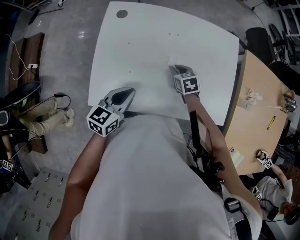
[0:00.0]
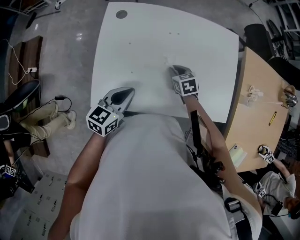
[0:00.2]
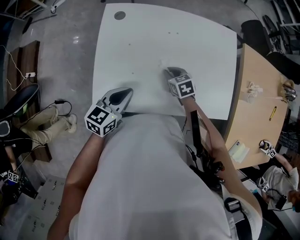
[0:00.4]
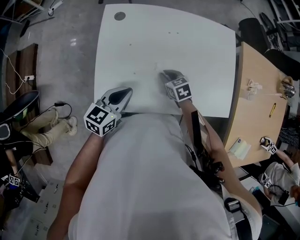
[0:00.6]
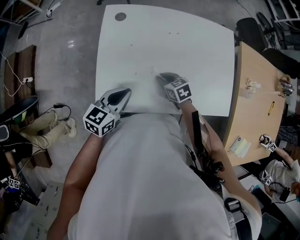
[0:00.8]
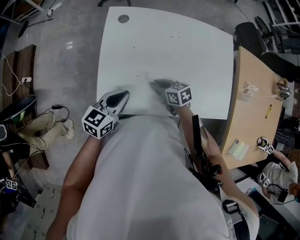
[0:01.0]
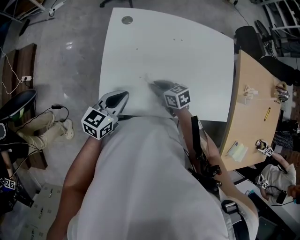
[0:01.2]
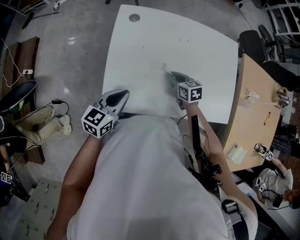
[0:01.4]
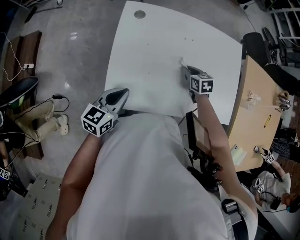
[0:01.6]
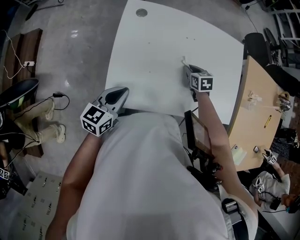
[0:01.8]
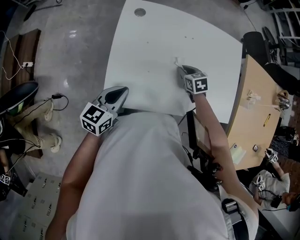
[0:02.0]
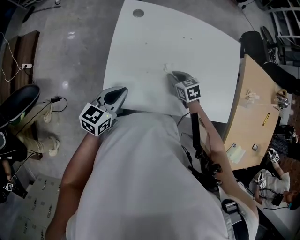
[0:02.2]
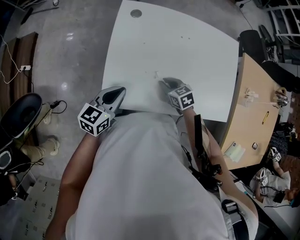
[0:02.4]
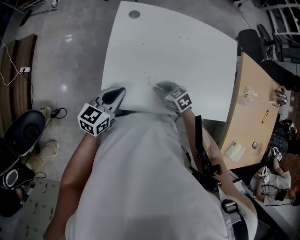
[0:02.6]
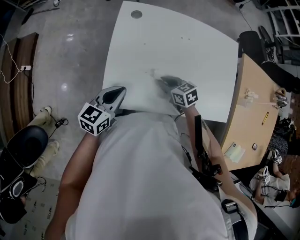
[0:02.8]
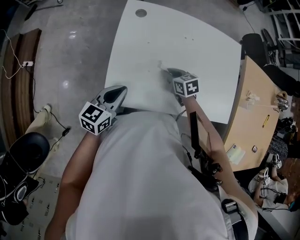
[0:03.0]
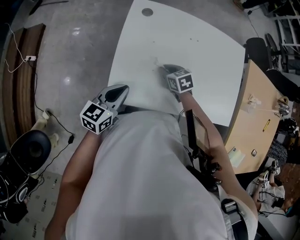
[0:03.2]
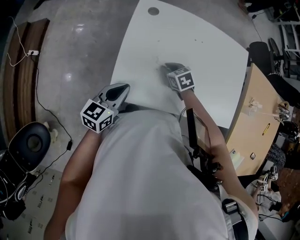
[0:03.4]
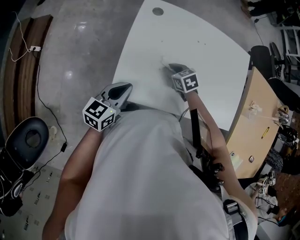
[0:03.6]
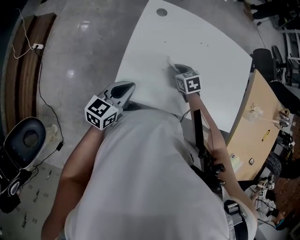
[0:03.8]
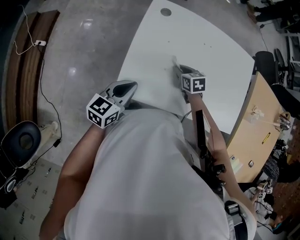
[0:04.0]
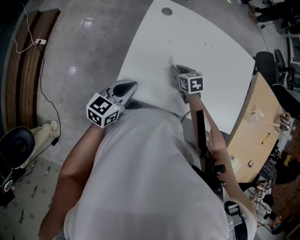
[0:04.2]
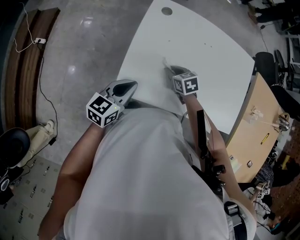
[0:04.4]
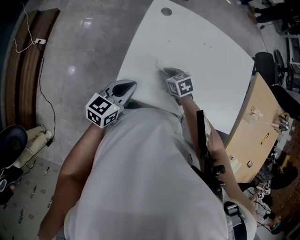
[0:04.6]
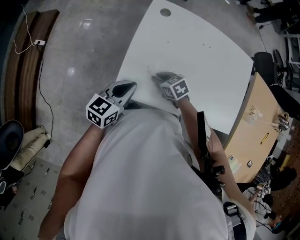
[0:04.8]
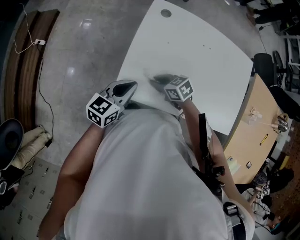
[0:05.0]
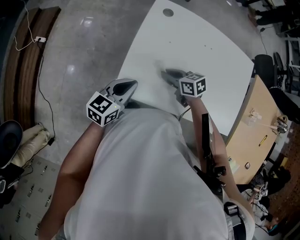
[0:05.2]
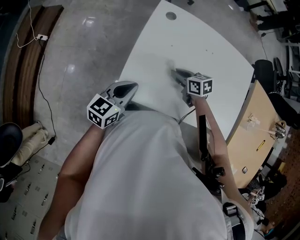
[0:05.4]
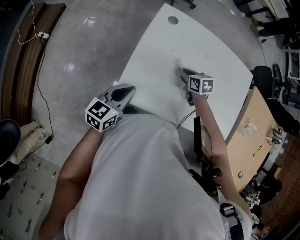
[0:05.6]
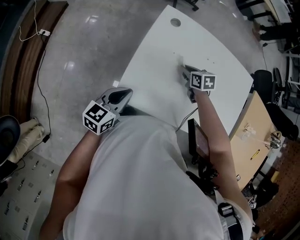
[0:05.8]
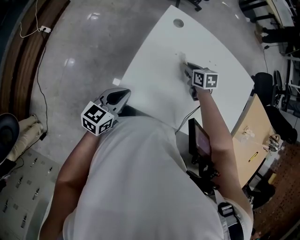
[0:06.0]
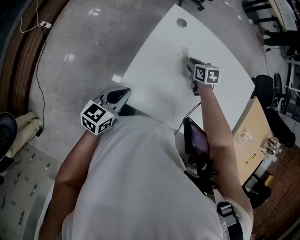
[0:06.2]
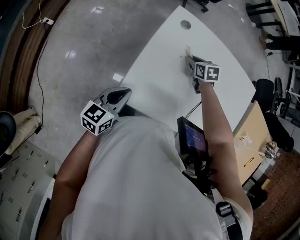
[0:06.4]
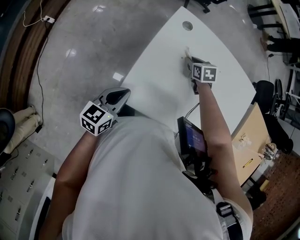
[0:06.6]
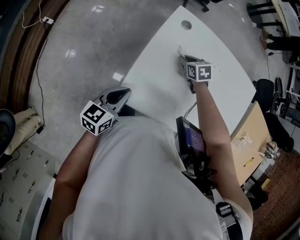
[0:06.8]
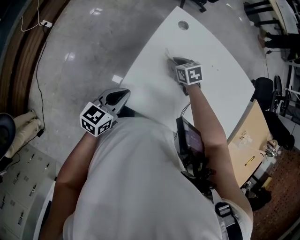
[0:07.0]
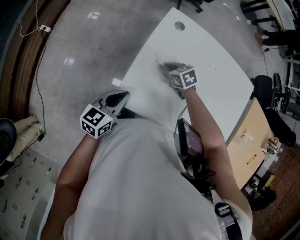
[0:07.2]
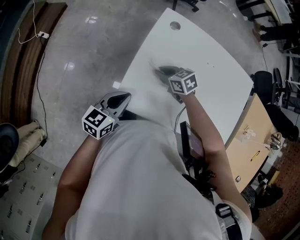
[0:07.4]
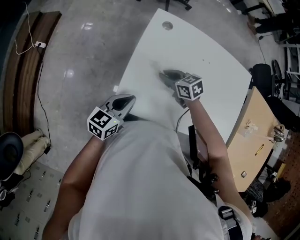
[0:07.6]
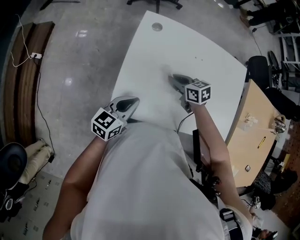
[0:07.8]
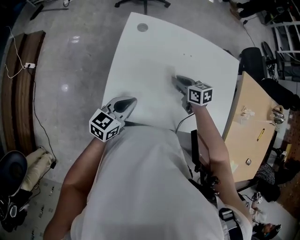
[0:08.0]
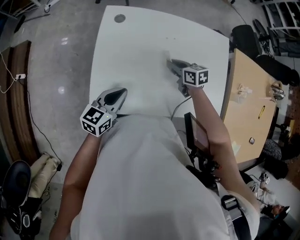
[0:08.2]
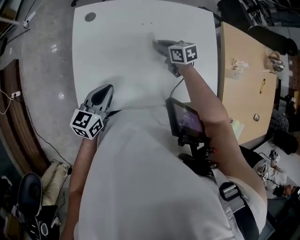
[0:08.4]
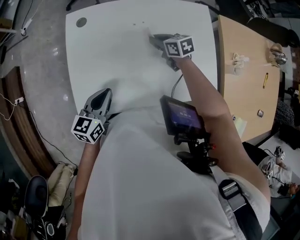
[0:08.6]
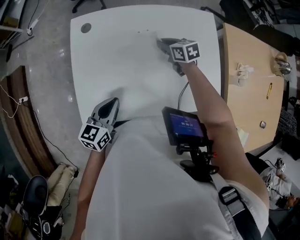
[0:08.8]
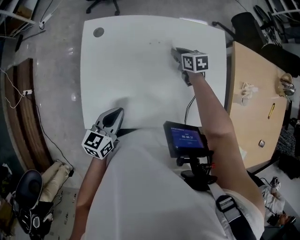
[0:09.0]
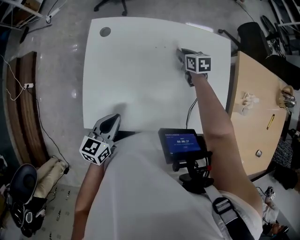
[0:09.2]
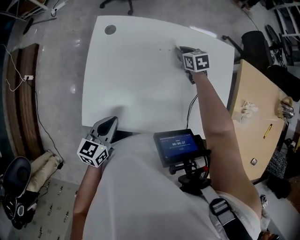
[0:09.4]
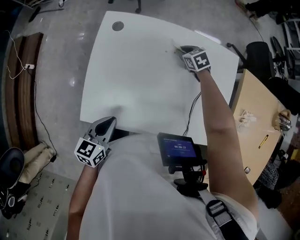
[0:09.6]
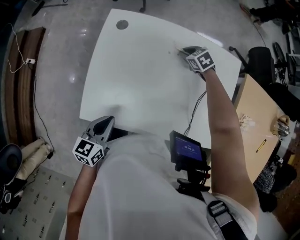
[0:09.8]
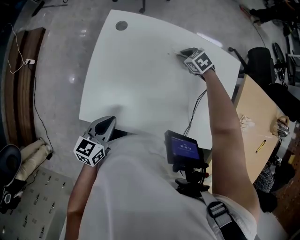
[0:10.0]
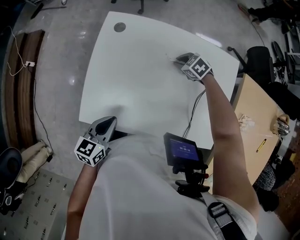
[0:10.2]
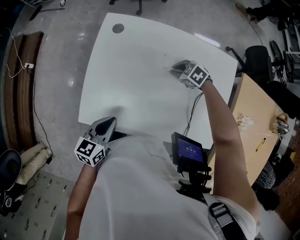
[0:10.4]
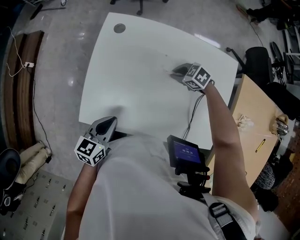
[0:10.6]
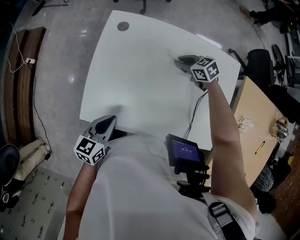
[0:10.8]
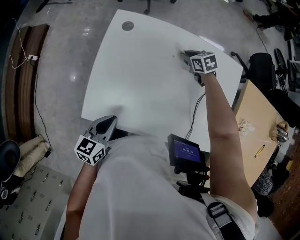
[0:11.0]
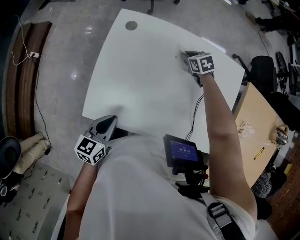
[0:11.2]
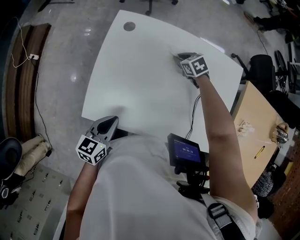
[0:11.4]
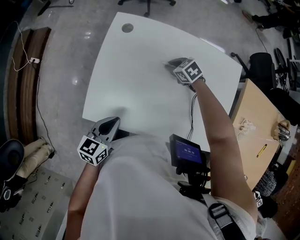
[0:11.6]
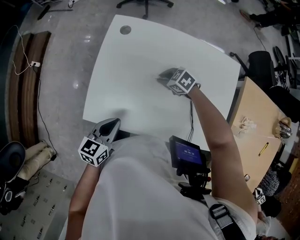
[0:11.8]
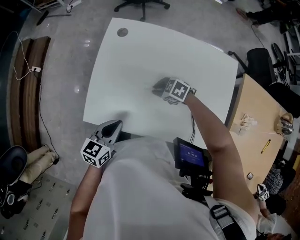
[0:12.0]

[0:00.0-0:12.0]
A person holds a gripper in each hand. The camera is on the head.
0:00.0 to 0:01.6: The right gripper moves some 15 cm to the left and comes back. Meanwhile the left gripper moves to the left, about 10 cm.
0:01.6 to 0:03.0: The right gripper travels to the left by approximately 10 cm.
0:03.0 to 0:04.4: The right gripper is displaced to the left by about 5 cm.
0:04.4 to 0:06.0: The right gripper is displaced forward by approximately 10 cm.
0:06.0 to 0:07.6: The right gripper goes approximately 10 cm to the left and backward, and changes its angle by some 20 degrees.
0:07.6 to 0:09.0: The left gripper is displaced to the right by some 15 cm. Meanwhile the right gripper moves to the right, some 30 cm, and rotates about 40 degrees.
0:09.0 to 0:10.4: The right gripper shifts by roughly 10 cm, and twists approximately 50 degrees counterclockwise, seen from behind.
0:10.4 to 0:12.0: The right gripper shifts by approximately 15 cm.

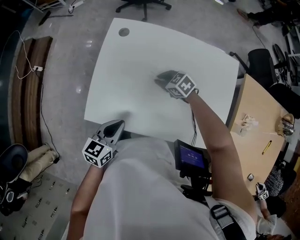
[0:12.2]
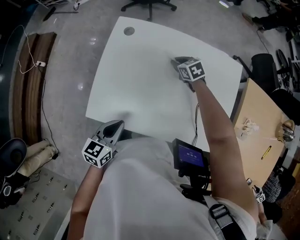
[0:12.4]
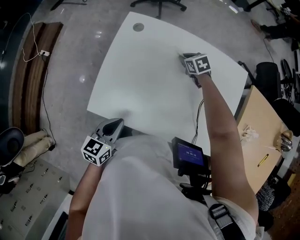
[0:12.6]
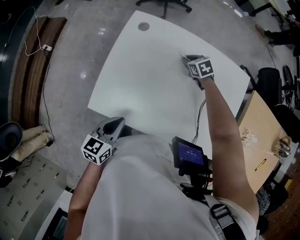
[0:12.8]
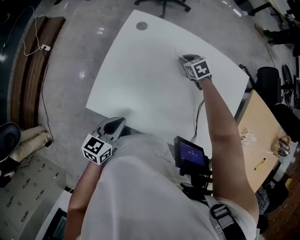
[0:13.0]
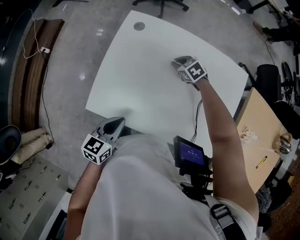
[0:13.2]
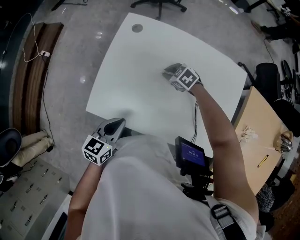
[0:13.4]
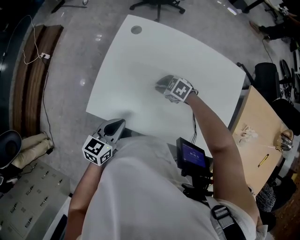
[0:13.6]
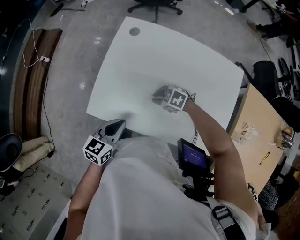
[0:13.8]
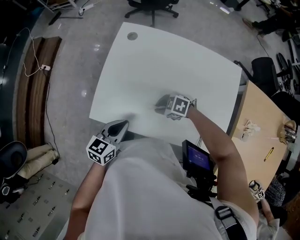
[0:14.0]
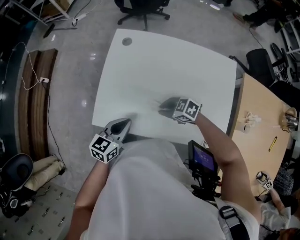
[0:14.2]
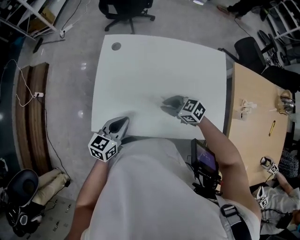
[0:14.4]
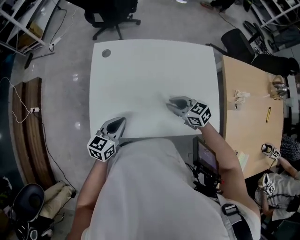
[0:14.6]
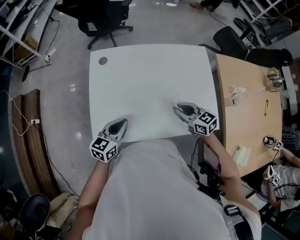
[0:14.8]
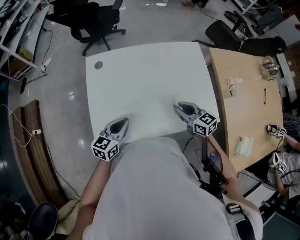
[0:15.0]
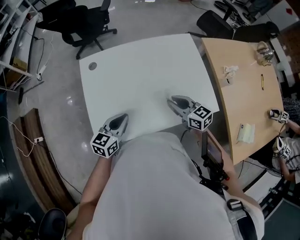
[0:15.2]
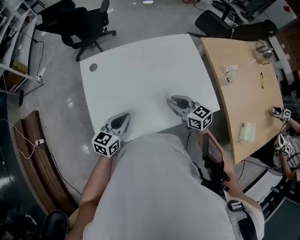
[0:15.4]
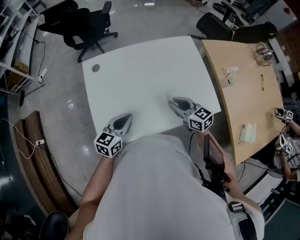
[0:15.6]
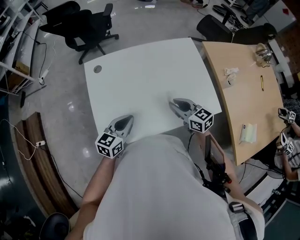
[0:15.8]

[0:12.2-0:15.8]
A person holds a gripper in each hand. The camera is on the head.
0:12.2 to 0:14.0: The right gripper shifts by about 15 cm, and turns by about 30 degrees.
0:14.0 to 0:15.8: The left gripper shifts by approximately 5 cm, and rotates roughly 30 degrees; the right gripper heads upward, covering roughly 15 cm, and rotates about 80 degrees.

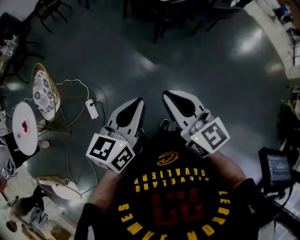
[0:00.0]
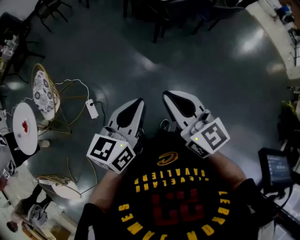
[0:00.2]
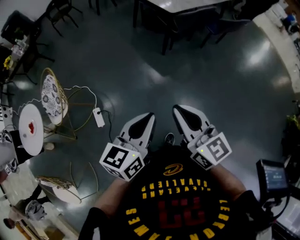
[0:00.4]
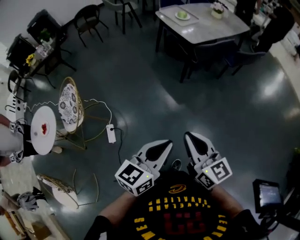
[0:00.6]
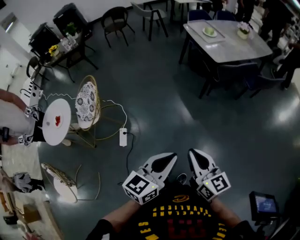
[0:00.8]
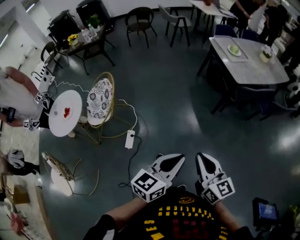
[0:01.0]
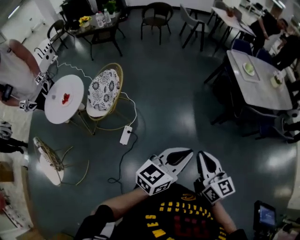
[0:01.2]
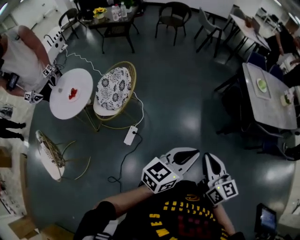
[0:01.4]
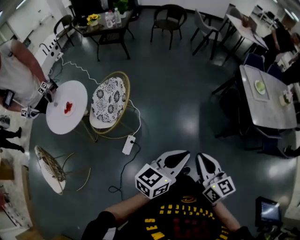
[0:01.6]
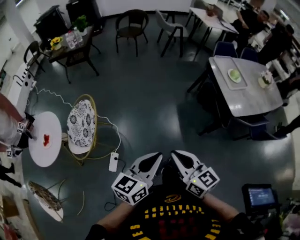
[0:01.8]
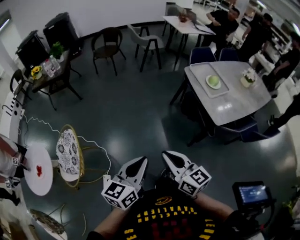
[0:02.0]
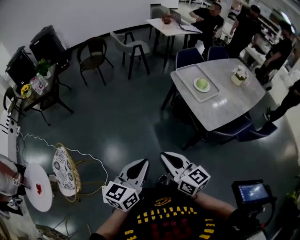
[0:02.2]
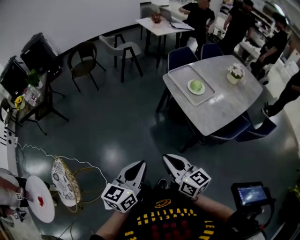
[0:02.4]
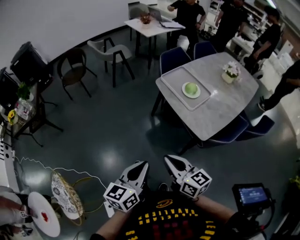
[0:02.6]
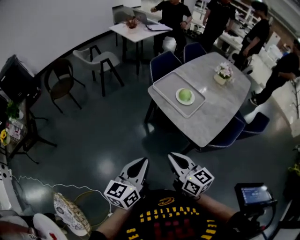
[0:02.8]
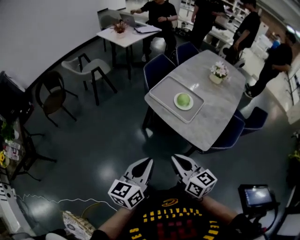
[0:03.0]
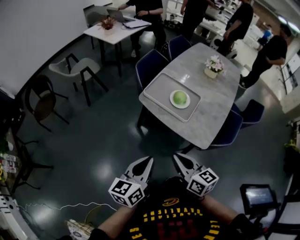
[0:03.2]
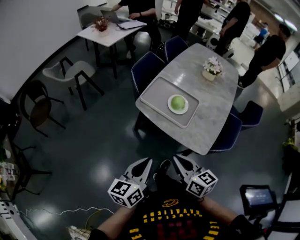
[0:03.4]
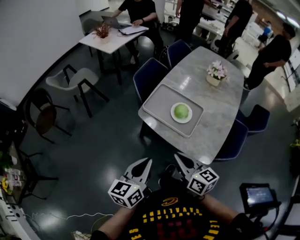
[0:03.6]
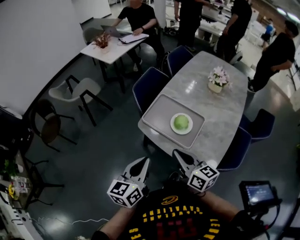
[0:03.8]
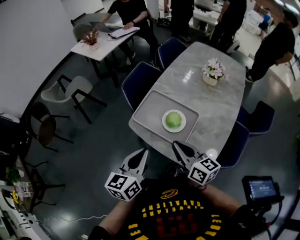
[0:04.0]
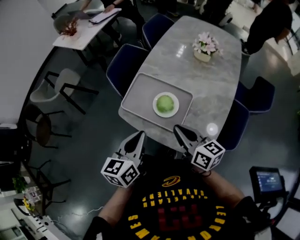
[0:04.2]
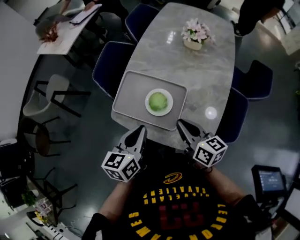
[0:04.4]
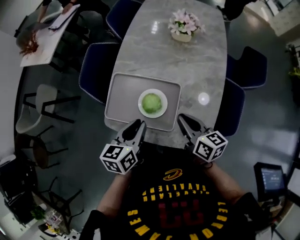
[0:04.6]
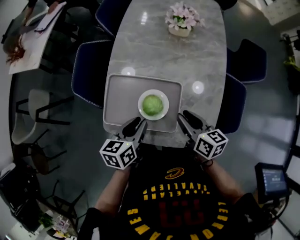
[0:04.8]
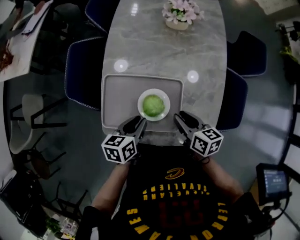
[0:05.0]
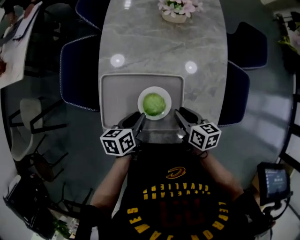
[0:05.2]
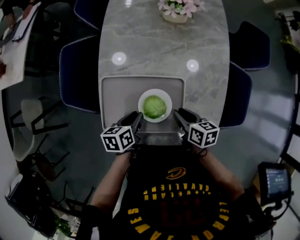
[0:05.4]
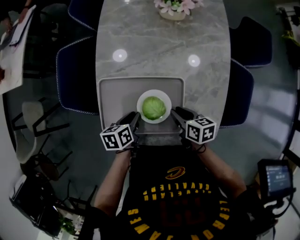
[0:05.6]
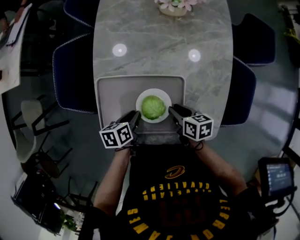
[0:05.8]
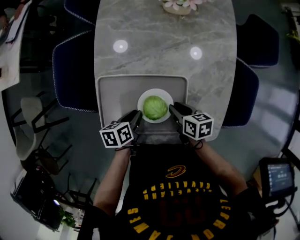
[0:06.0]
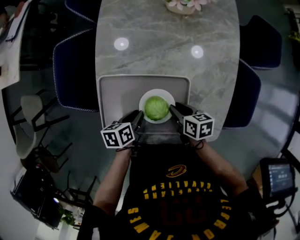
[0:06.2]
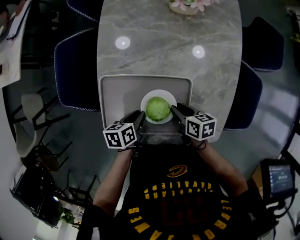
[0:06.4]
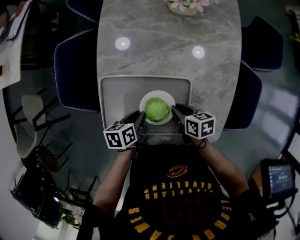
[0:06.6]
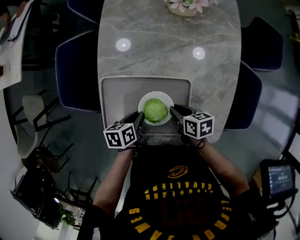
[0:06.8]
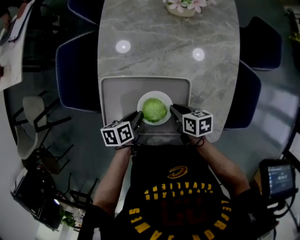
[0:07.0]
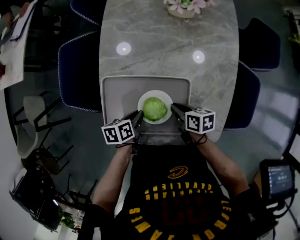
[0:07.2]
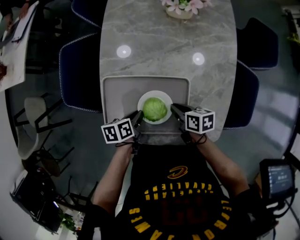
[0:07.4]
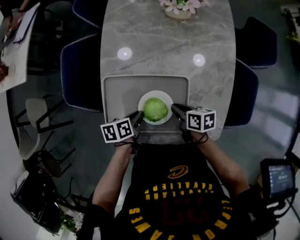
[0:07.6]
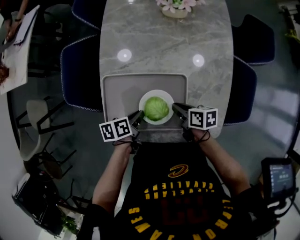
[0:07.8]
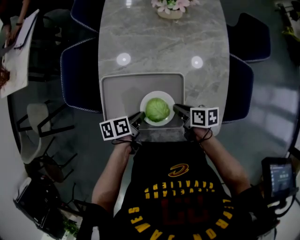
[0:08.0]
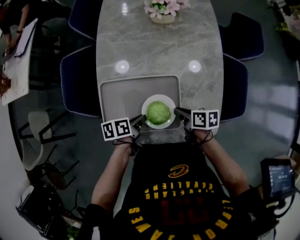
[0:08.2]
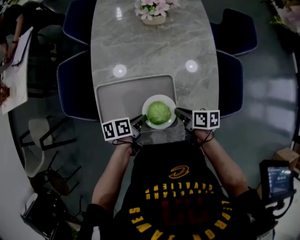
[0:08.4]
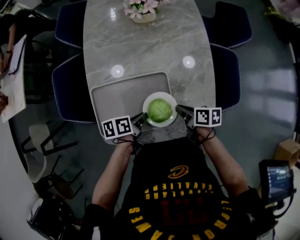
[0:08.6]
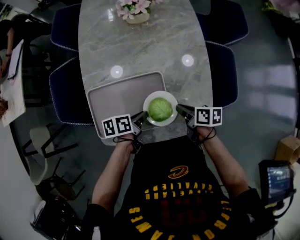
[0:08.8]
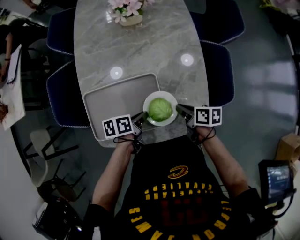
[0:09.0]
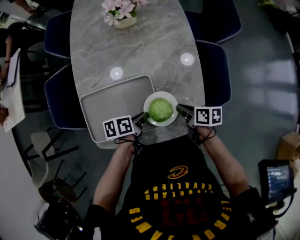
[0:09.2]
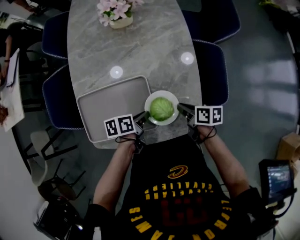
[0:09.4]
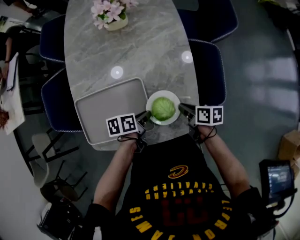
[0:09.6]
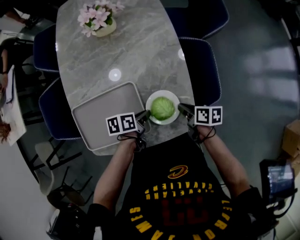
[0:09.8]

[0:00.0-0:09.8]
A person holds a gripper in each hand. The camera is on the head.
0:00.0 to 0:01.4: The grippers both shift forward and to the left by some 25 cm. The right gripper swivels roughly 20 degrees.
0:01.4 to 0:02.8: The pair of grippers is taken some 60 cm. The right gripper swivels about 30 degrees.
0:02.8 to 0:04.2: Both grippers travel together forward, about 35 cm. The right gripper turns by about 20 degrees.
0:04.2 to 0:05.6: The two grippers go about 25 cm downward. The left gripper points its fingers approximately 30 degrees further downward, and opens up. Meanwhile the right gripper tips its fingers downward by about 40 degrees, and opens.
0:05.6 to 0:07.0: The grippers stay close to where they were, moving slightly.
0:07.0 to 0:08.4: Both grippers travel together to the right, roughly 5 cm.
0:08.4 to 0:09.8: The two grippers go about 15 cm to the right.
